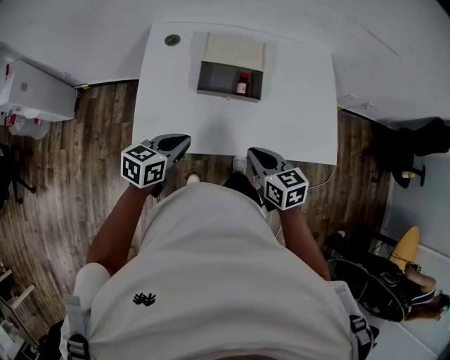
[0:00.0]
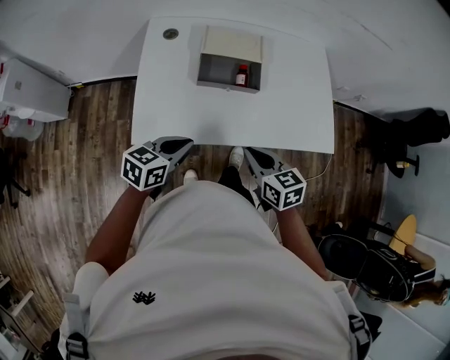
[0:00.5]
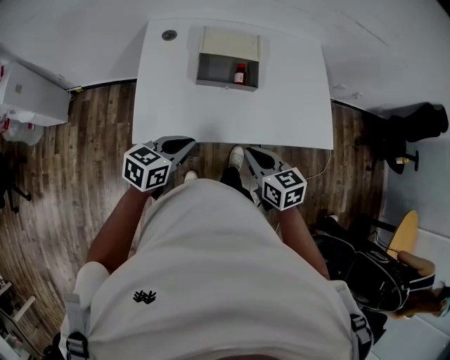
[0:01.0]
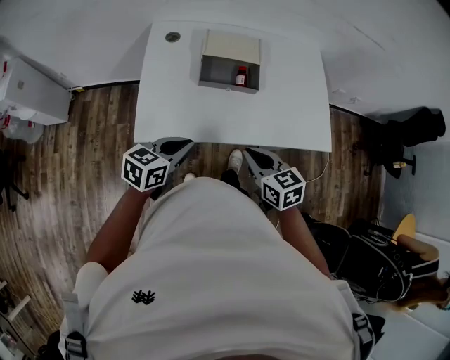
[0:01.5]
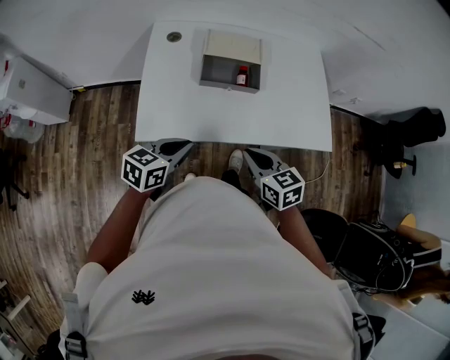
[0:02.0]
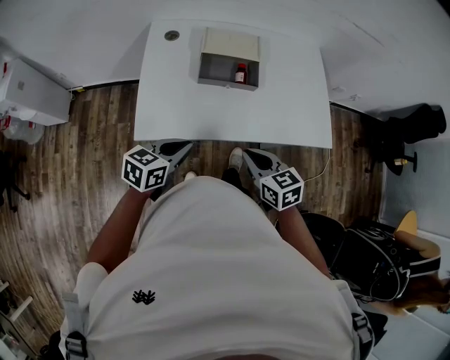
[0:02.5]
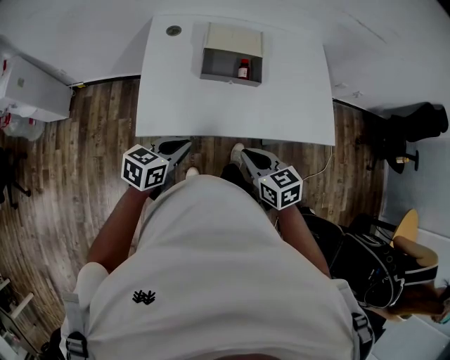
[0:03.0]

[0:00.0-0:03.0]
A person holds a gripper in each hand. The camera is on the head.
0:00.0 to 0:01.5: Both grippers move backward, roughly 5 cm.
0:01.5 to 0:03.0: The grippers make only small movements.

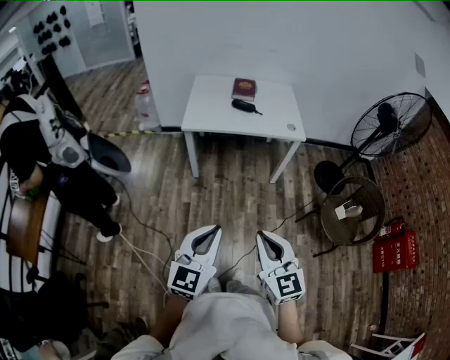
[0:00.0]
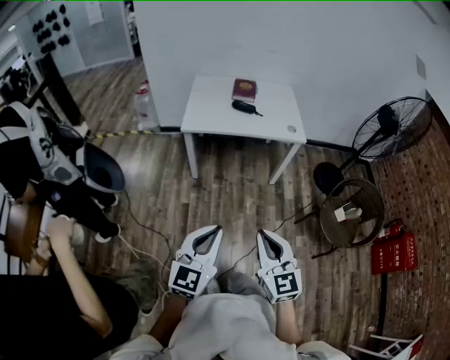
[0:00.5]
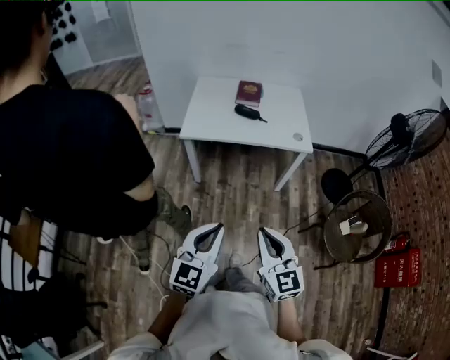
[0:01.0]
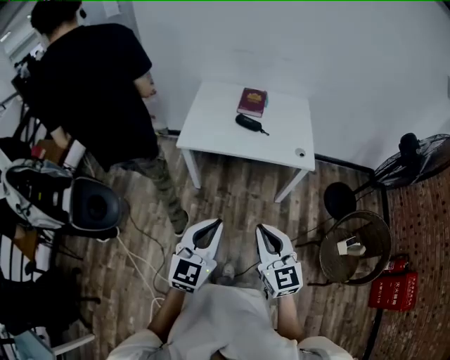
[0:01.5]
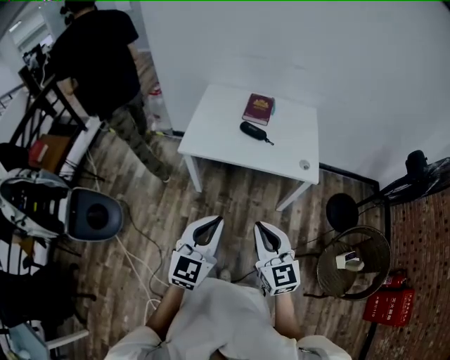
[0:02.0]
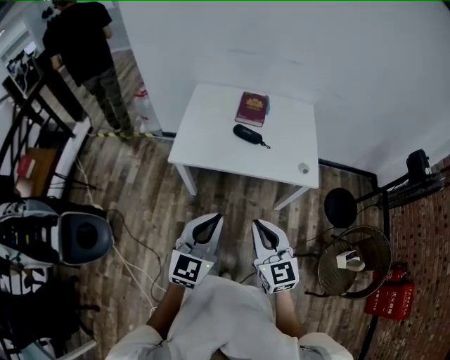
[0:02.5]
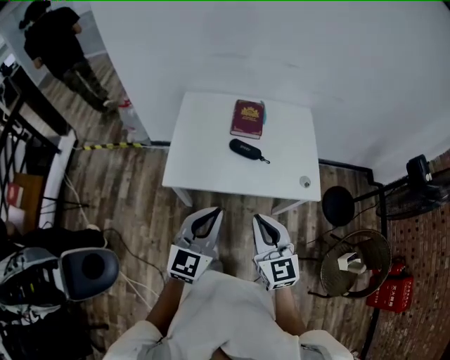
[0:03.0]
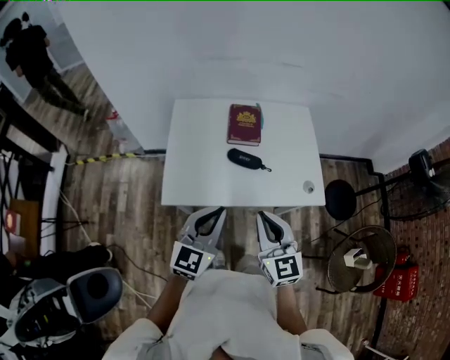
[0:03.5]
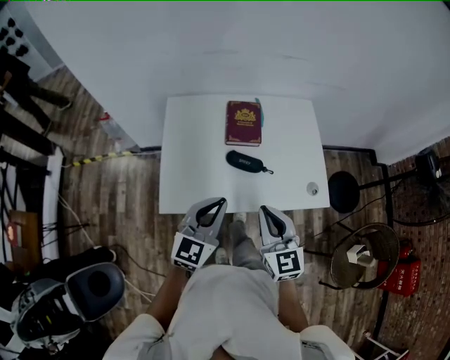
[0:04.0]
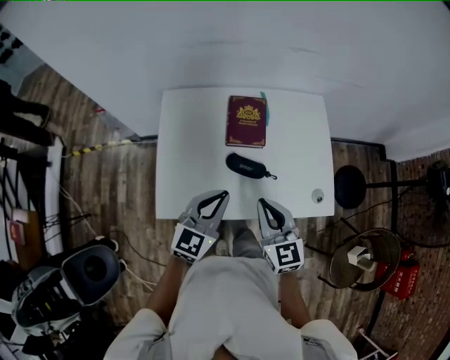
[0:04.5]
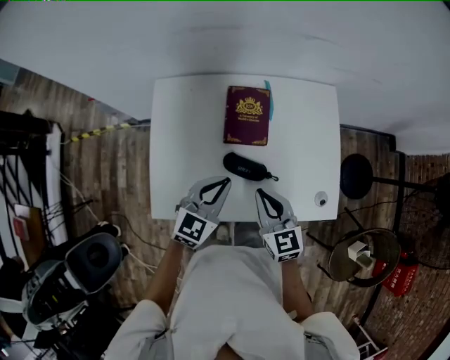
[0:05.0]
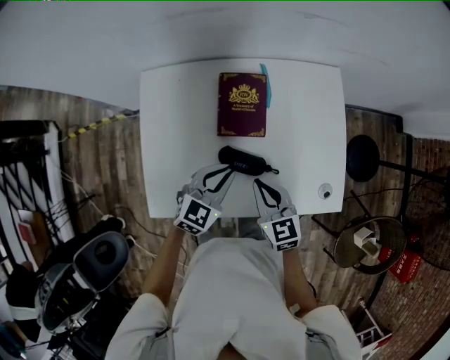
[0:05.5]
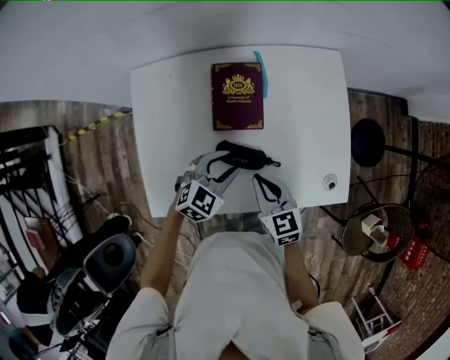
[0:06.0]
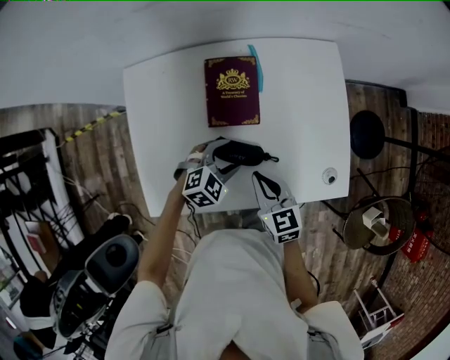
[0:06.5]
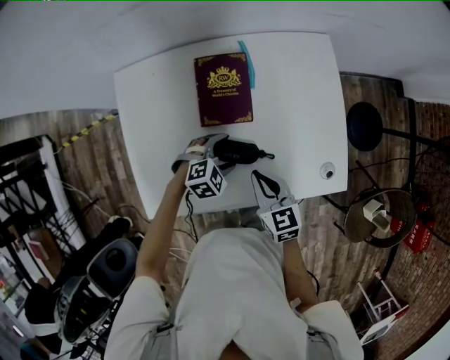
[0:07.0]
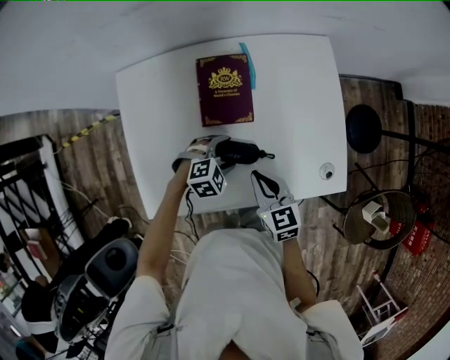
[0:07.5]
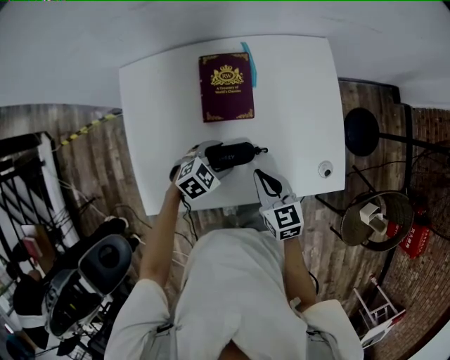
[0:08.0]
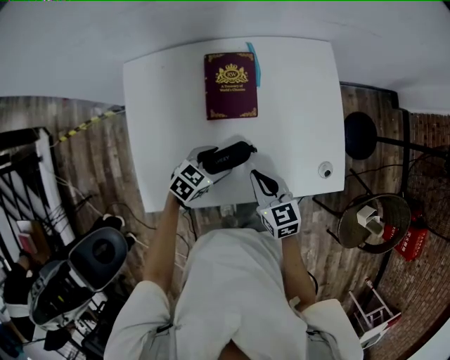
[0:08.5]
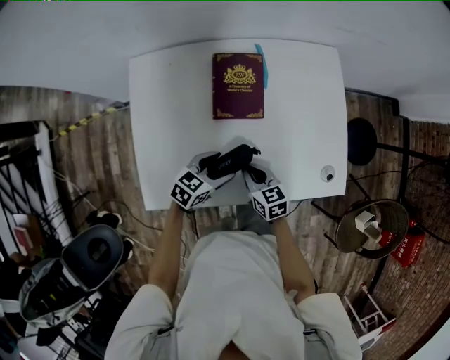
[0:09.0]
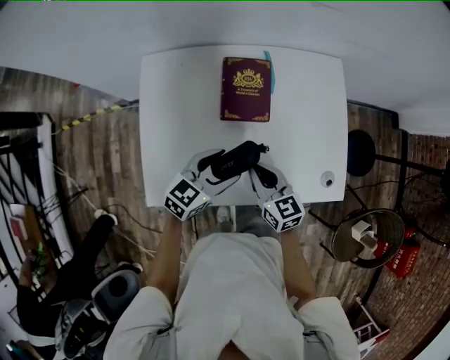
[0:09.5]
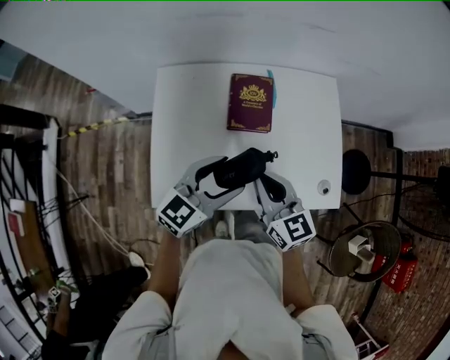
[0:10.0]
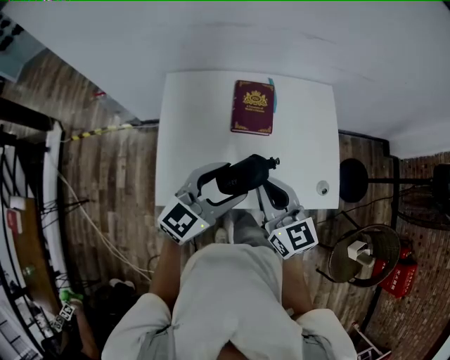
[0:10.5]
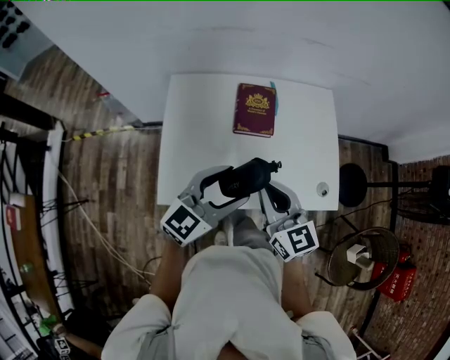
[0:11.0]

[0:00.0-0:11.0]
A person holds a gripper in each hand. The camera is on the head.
0:00.0 to 0:02.0: The grippers both shift forward by roughly 30 cm.
0:02.0 to 0:03.5: Both grippers travel together forward, roughly 30 cm.
0:03.5 to 0:05.5: The two grippers go roughly 30 cm forward and downward. The left gripper swivels about 20 degrees, while the right gripper changes its angle by about 20 degrees.
0:05.5 to 0:07.5: The left gripper travels downward by some 15 cm, rotates about 50 degrees, and opens up.
0:07.5 to 0:09.0: The right gripper shifts roughly 10 cm downward. Meanwhile the left gripper shifts some 5 cm backward, and twists roughly 40 degrees counterclockwise, seen from behind.
0:09.0 to 0:11.0: The two grippers go about 25 cm upward. The right gripper swivels some 30 degrees. The left gripper turns by roughly 40 degrees.

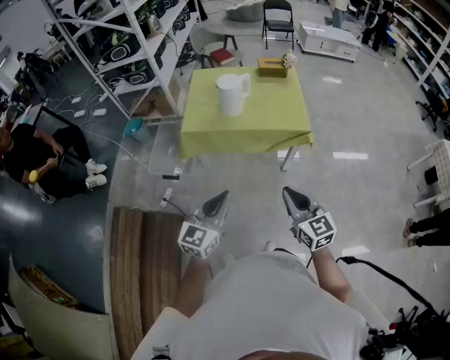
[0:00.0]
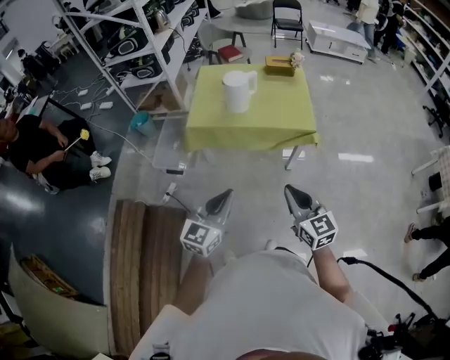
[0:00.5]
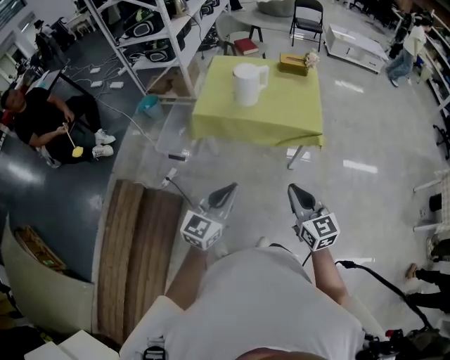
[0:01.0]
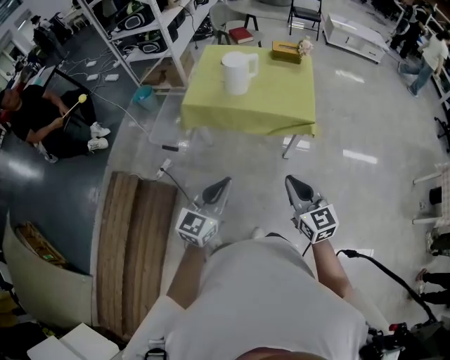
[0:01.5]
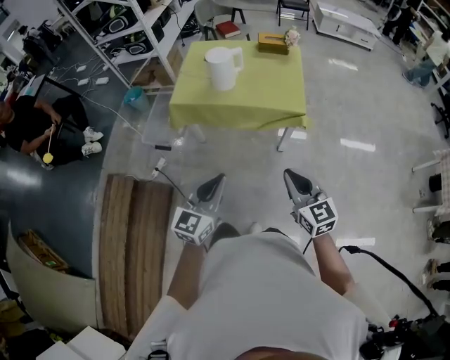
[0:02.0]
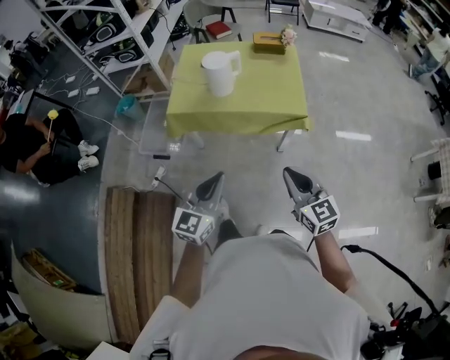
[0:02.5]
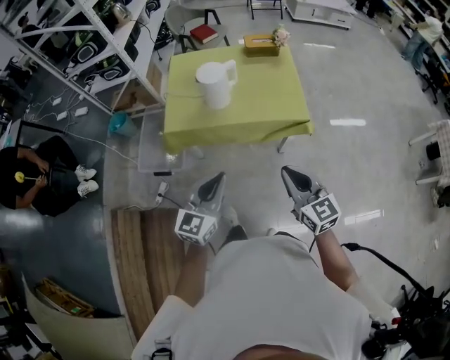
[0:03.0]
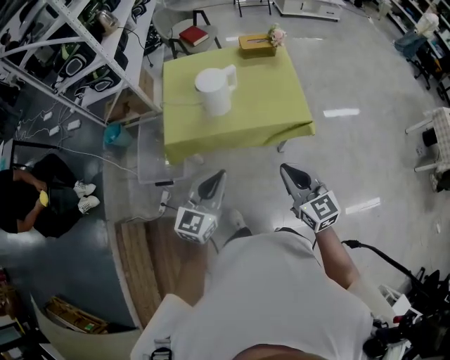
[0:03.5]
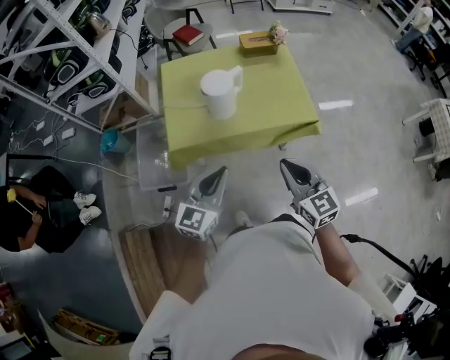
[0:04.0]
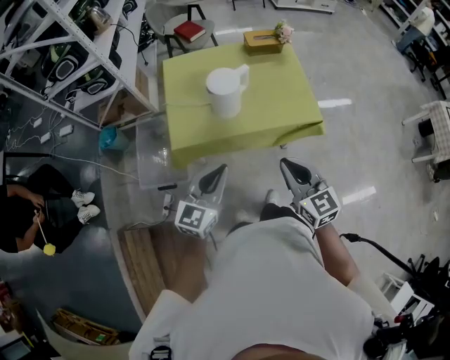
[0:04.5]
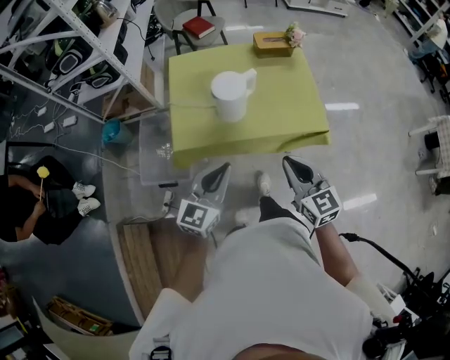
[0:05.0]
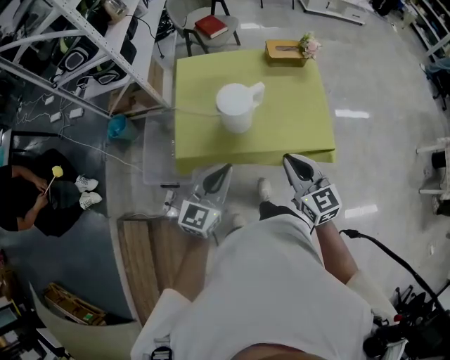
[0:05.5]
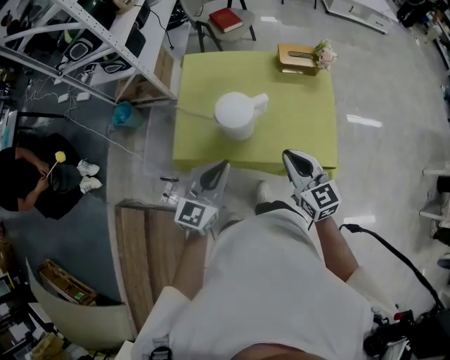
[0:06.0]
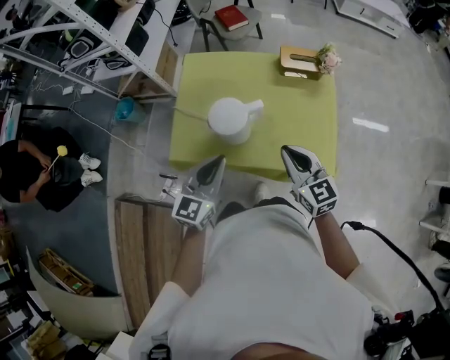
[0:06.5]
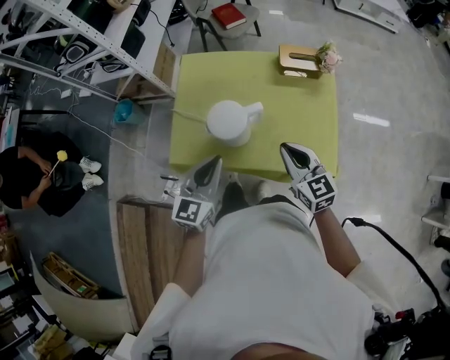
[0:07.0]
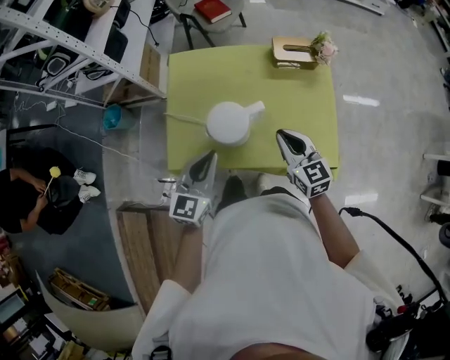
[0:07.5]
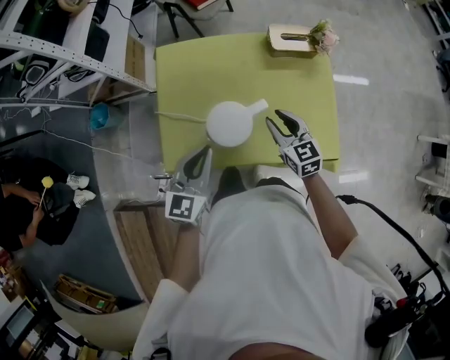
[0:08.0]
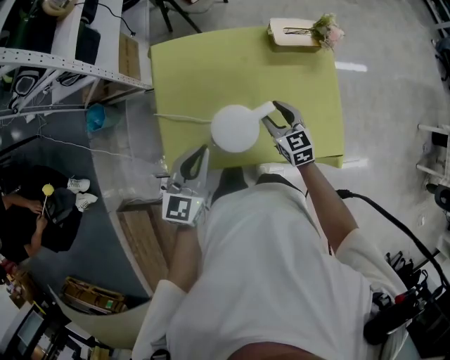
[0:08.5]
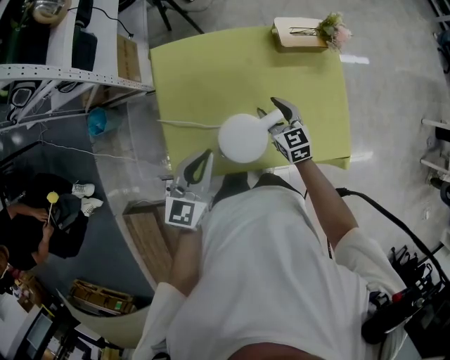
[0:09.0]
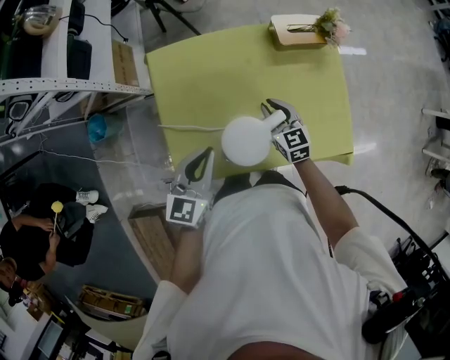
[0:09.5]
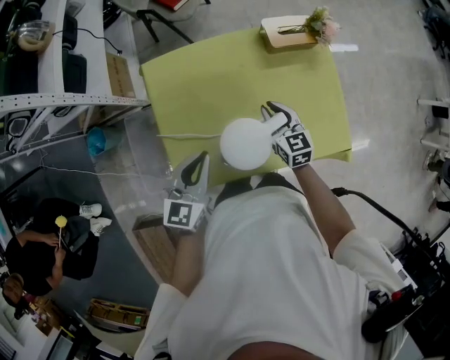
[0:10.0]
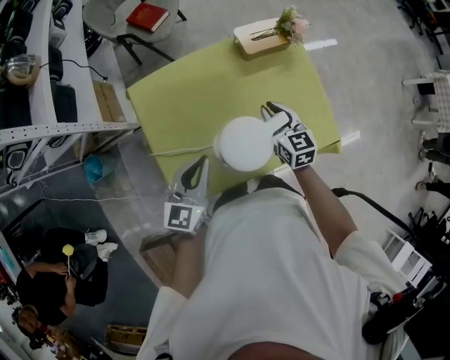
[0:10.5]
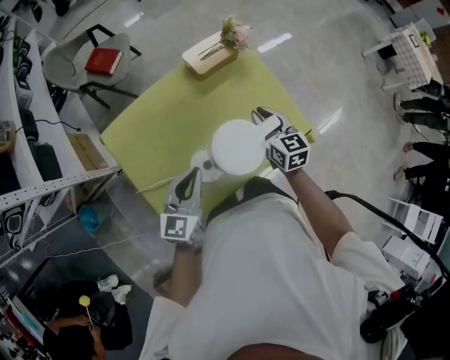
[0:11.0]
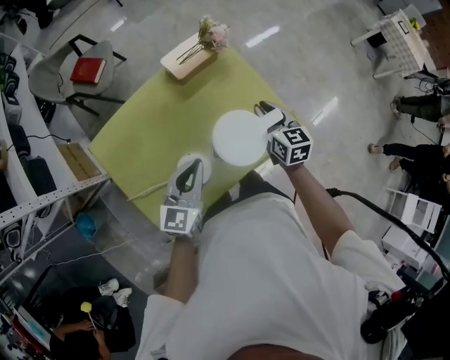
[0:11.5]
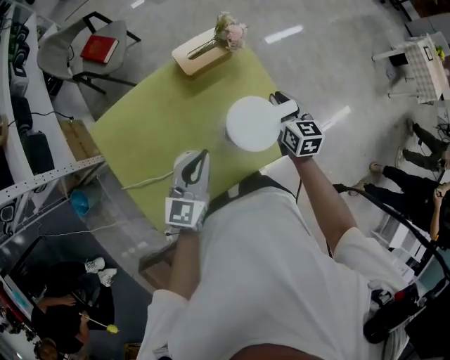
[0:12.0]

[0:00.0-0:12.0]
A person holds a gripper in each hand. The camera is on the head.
0:00.0 to 0:02.0: The two grippers go about 10 cm to the right.
0:02.0 to 0:04.0: The grippers both shift forward and to the left by some 35 cm.
0:04.0 to 0:06.0: Both grippers travel together forward, some 25 cm.
0:06.0 to 0:08.0: The right gripper is displaced forward and downward by roughly 20 cm, and opens its fingers. Meanwhile the left gripper goes roughly 15 cm forward.
0:08.0 to 0:10.0: The left gripper travels forward and to the left by approximately 10 cm. The right gripper heads forward and downward, covering approximately 10 cm.
0:10.0 to 0:12.0: The left gripper shifts by some 20 cm. The right gripper shifts by about 30 cm, and changes its angle by about 30 degrees.

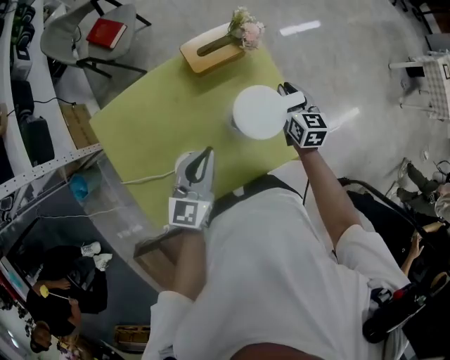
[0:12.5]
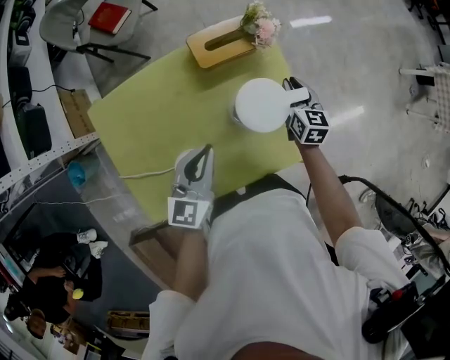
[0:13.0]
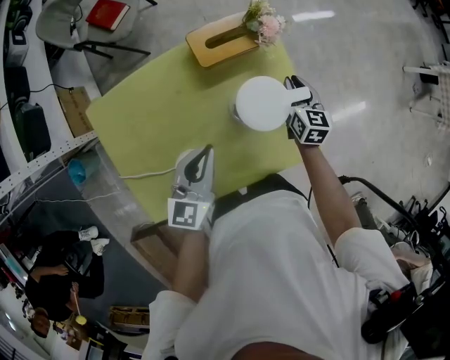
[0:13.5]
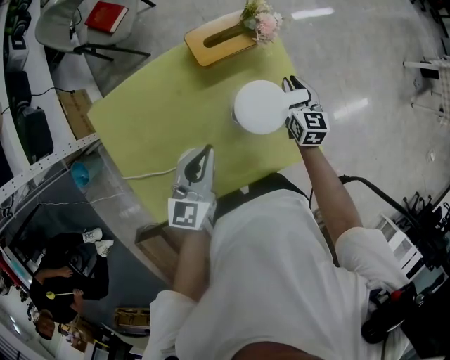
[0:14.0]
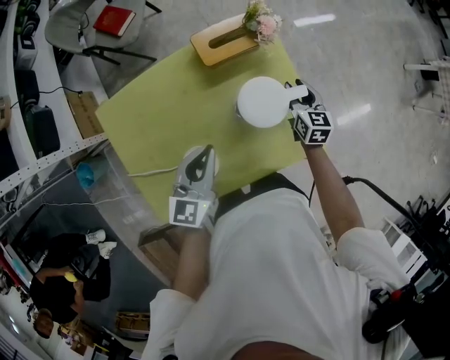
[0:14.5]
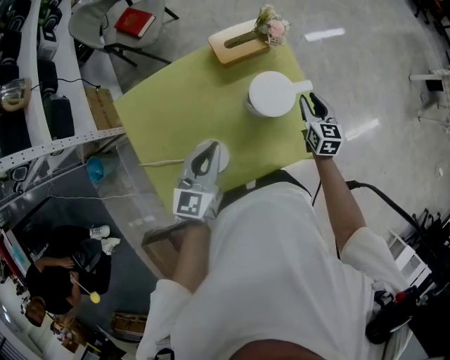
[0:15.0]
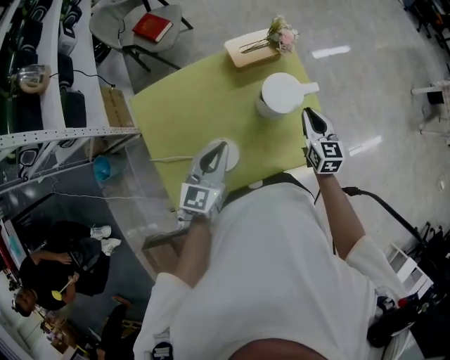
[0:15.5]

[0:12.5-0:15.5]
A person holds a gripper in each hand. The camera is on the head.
0:12.5 to 0:14.0: The right gripper goes some 5 cm downward.
0:14.0 to 0:15.5: The left gripper shifts some 10 cm backward and upward. Meanwhile the right gripper heads backward and upward, covering about 20 cm.
